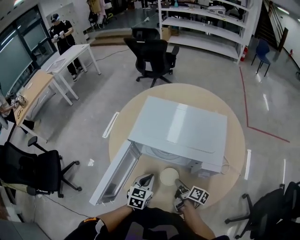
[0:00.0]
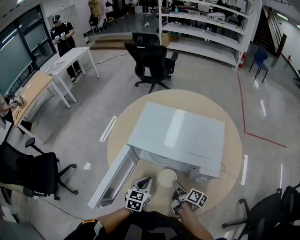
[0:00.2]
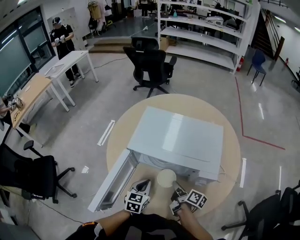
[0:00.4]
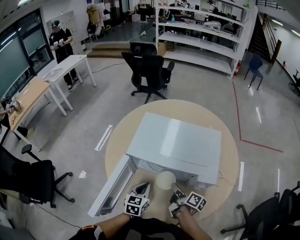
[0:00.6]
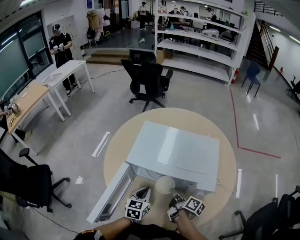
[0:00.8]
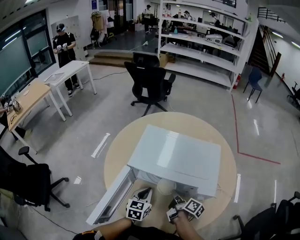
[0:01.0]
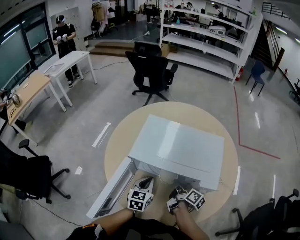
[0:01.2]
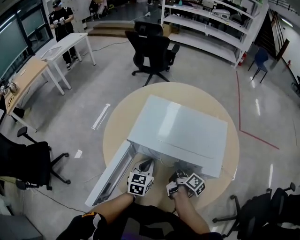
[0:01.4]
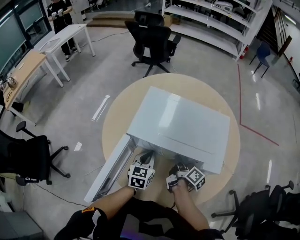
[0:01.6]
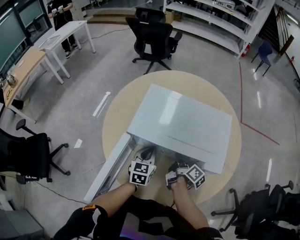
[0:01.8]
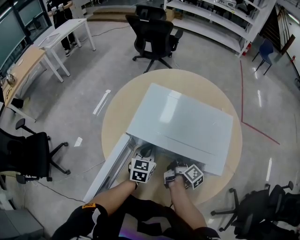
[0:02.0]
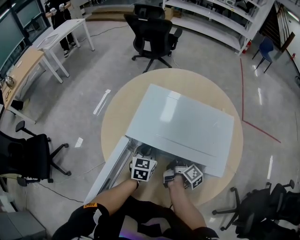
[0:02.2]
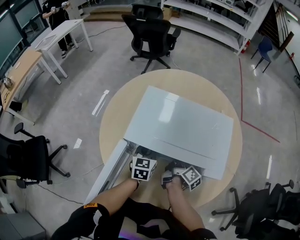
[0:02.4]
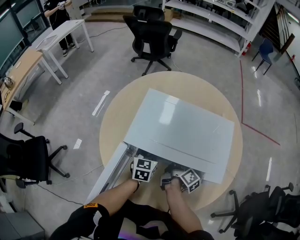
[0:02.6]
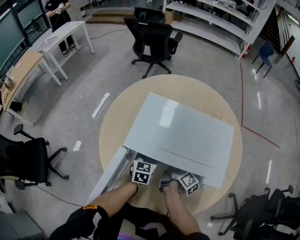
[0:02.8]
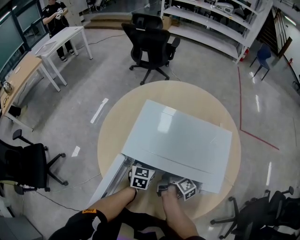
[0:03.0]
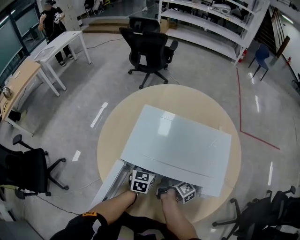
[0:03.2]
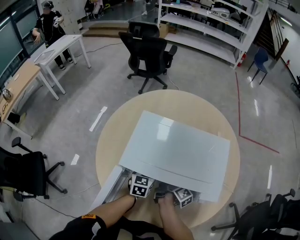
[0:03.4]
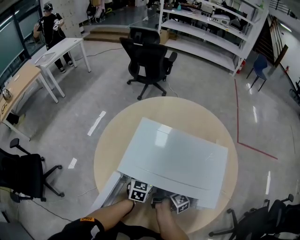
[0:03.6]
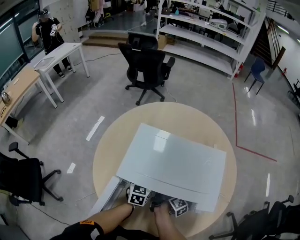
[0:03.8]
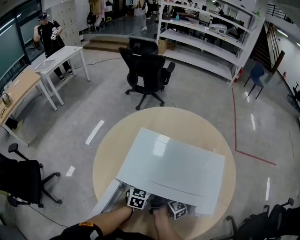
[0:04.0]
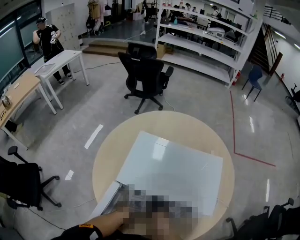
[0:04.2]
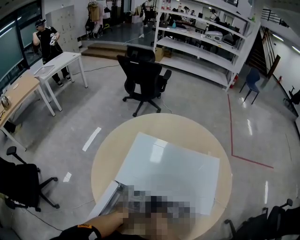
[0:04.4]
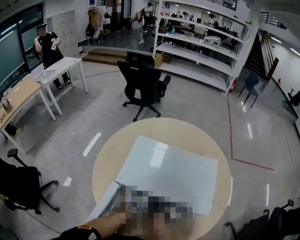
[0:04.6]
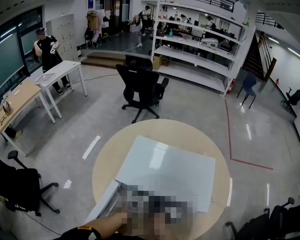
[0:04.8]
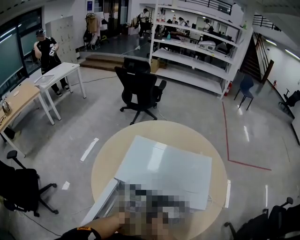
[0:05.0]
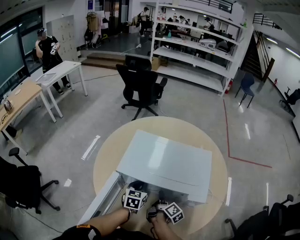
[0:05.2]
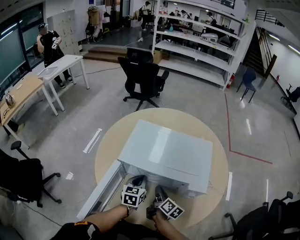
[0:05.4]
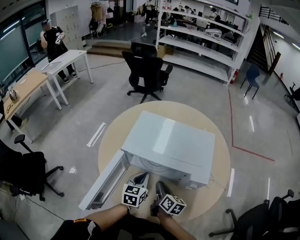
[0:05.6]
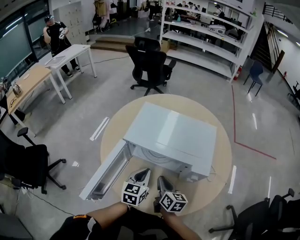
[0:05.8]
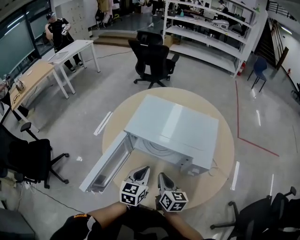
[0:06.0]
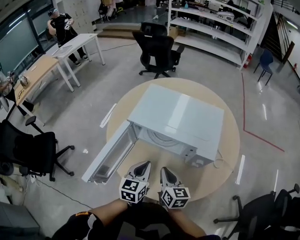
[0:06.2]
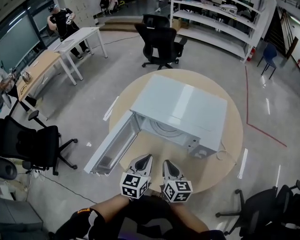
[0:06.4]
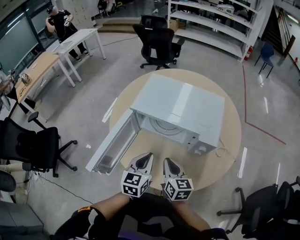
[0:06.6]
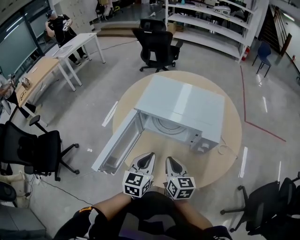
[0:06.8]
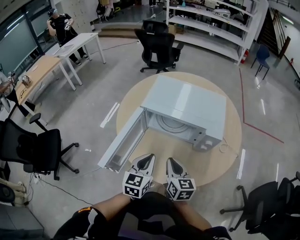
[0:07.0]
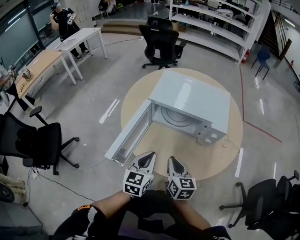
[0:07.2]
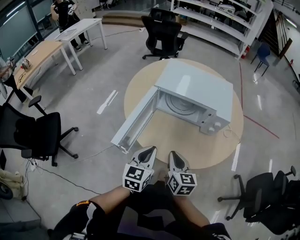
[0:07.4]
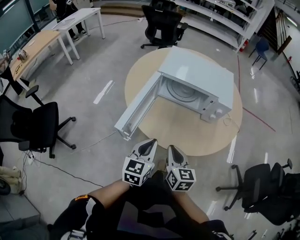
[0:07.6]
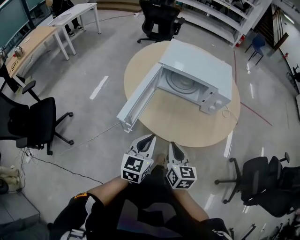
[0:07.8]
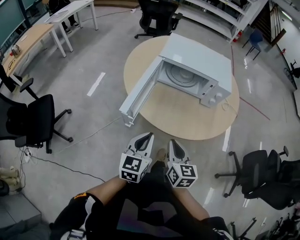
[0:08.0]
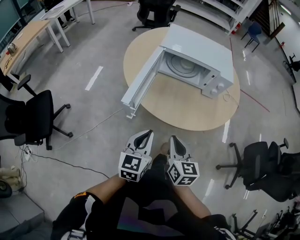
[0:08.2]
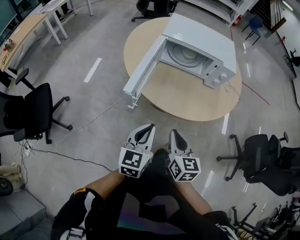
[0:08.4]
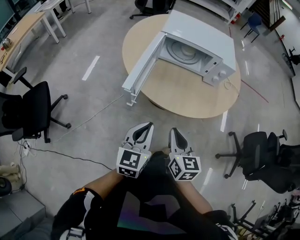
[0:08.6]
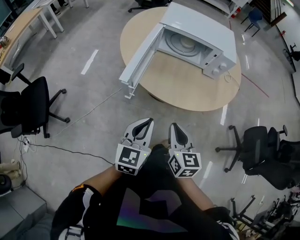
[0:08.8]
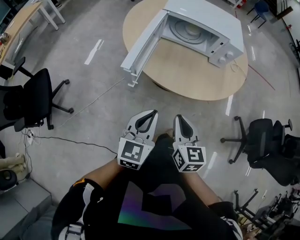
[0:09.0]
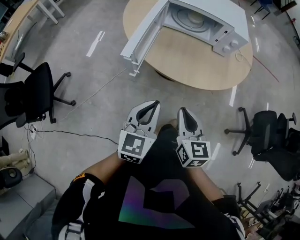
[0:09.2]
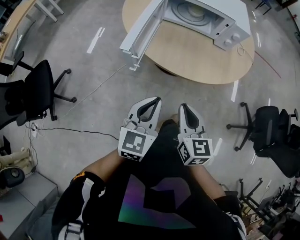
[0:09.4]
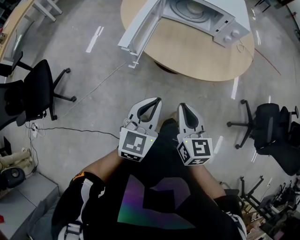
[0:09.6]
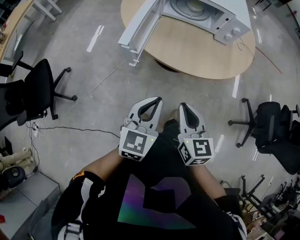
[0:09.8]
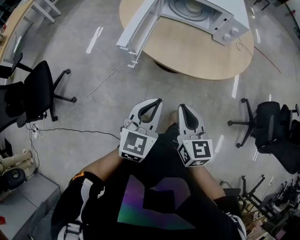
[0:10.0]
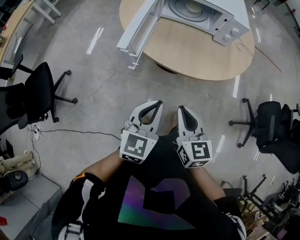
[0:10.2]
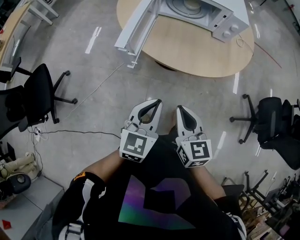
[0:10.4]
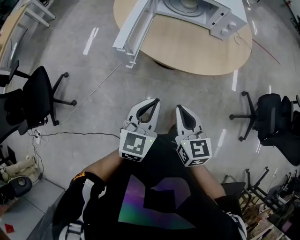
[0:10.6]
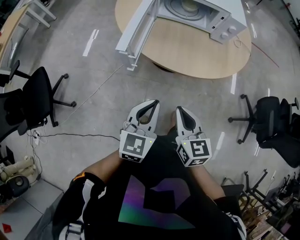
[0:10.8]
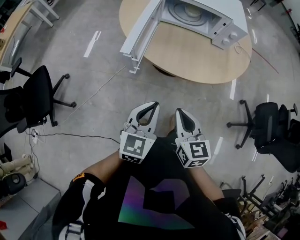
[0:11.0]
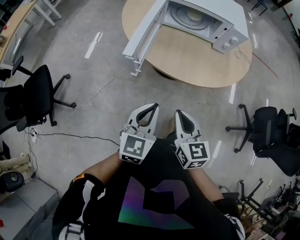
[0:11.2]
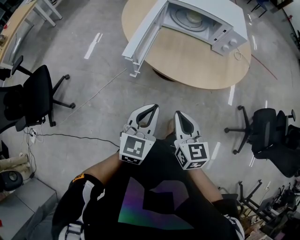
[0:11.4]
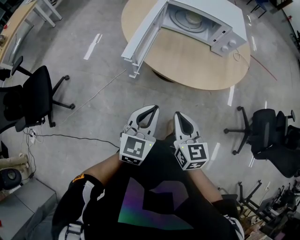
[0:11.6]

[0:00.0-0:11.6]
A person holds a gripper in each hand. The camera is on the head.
0:00.0 to 0:01.4: The right gripper shifts roughly 10 cm forward and upward, while the left gripper is displaced forward by roughly 10 cm.
0:01.4 to 0:02.8: Both grippers move forward, some 10 cm.
0:02.8 to 0:04.4: There are only small adjustments of the grippers.
0:04.4 to 0:05.8: The two grippers go approximately 20 cm backward and upward. The right gripper rolls counterclockwise, seen from behind, by about 50 degrees.
0:05.8 to 0:07.2: Both grippers travel together backward and to the left, roughly 20 cm.
0:07.2 to 0:08.8: The grippers both shift backward by some 20 cm.
0:08.8 to 0:10.2: The left gripper changes place by some 5 cm; the right gripper shifts by roughly 5 cm.
0:10.2 to 0:11.6: The grippers stay close to where they were, moving slightly.

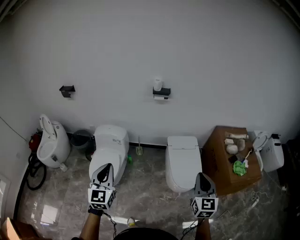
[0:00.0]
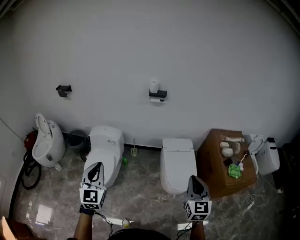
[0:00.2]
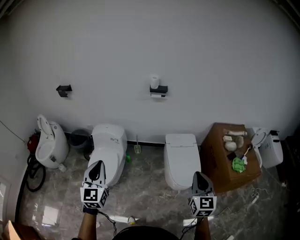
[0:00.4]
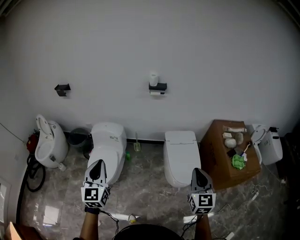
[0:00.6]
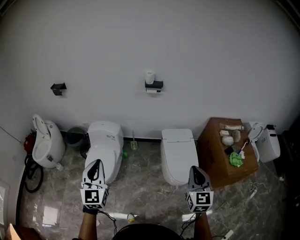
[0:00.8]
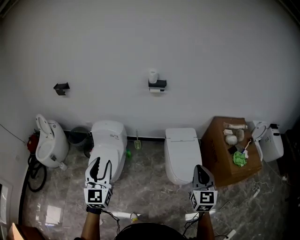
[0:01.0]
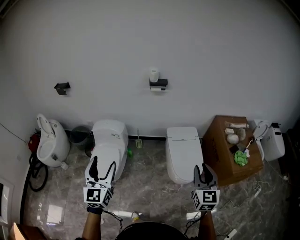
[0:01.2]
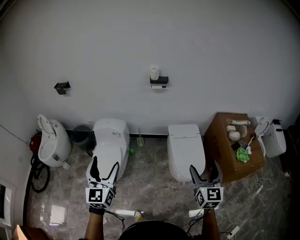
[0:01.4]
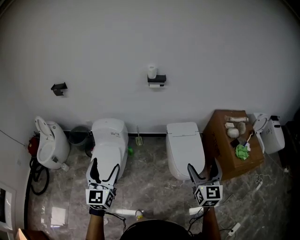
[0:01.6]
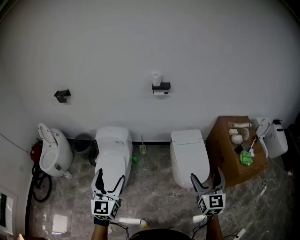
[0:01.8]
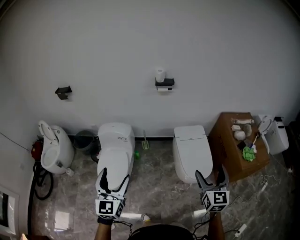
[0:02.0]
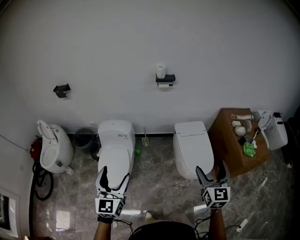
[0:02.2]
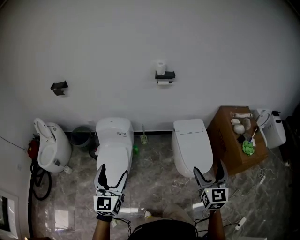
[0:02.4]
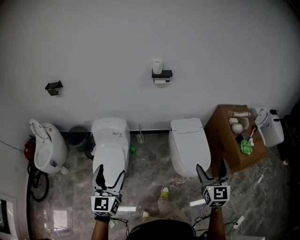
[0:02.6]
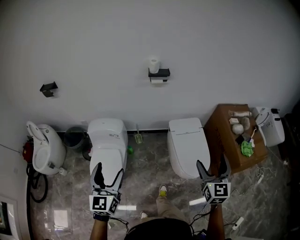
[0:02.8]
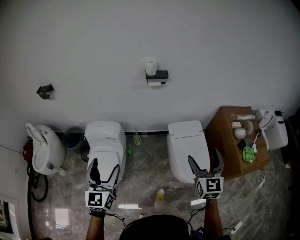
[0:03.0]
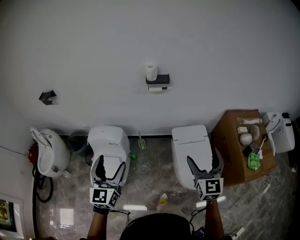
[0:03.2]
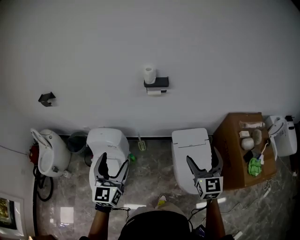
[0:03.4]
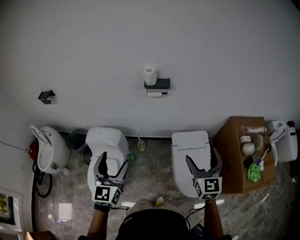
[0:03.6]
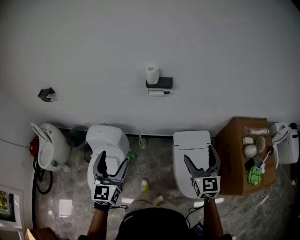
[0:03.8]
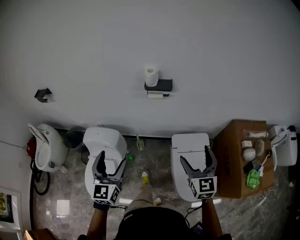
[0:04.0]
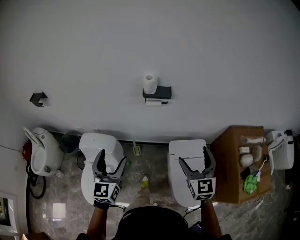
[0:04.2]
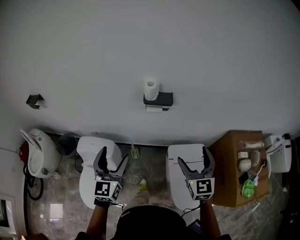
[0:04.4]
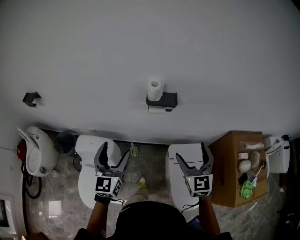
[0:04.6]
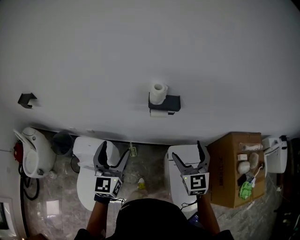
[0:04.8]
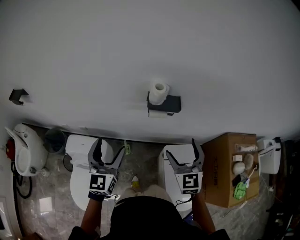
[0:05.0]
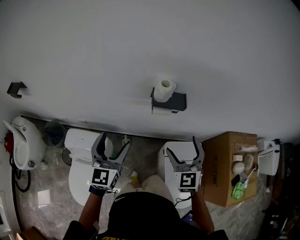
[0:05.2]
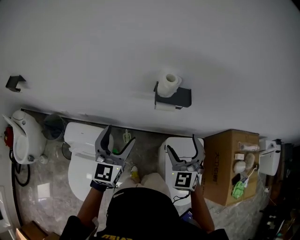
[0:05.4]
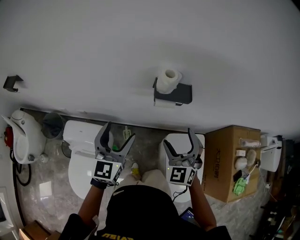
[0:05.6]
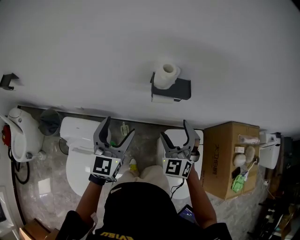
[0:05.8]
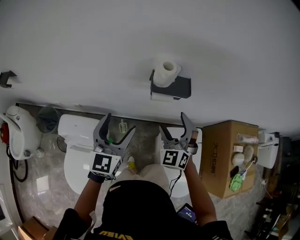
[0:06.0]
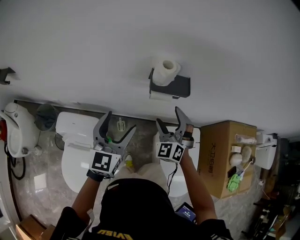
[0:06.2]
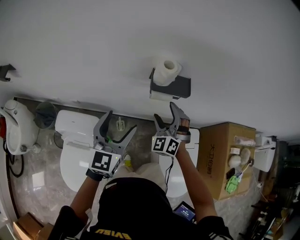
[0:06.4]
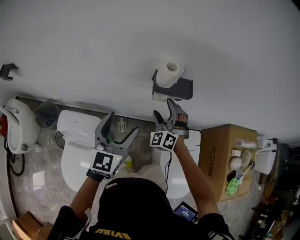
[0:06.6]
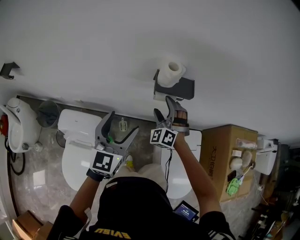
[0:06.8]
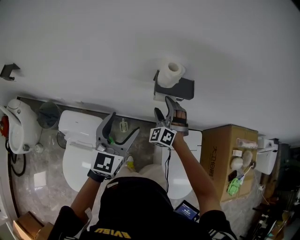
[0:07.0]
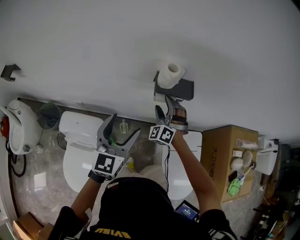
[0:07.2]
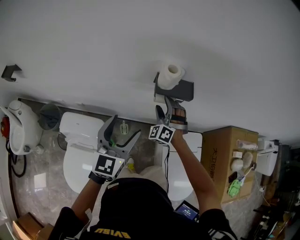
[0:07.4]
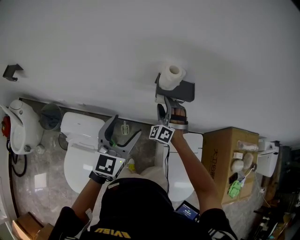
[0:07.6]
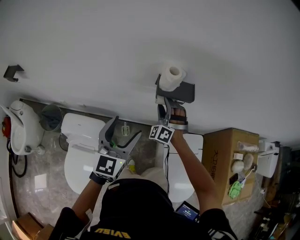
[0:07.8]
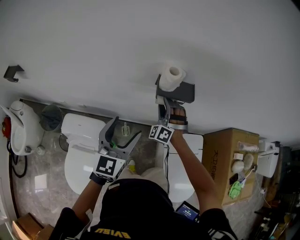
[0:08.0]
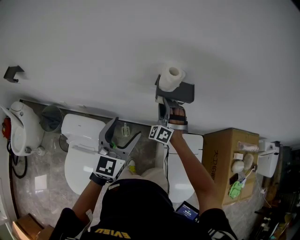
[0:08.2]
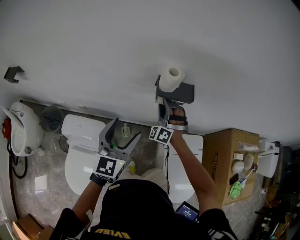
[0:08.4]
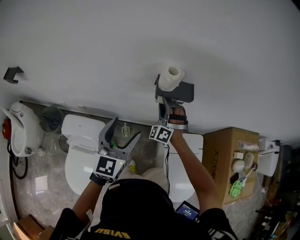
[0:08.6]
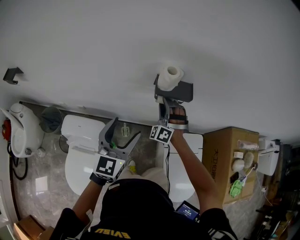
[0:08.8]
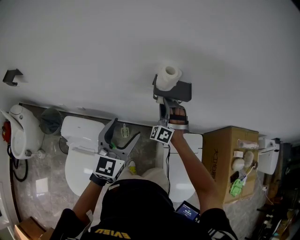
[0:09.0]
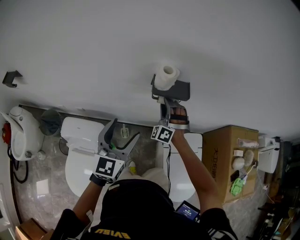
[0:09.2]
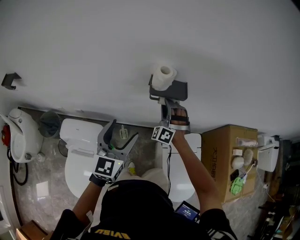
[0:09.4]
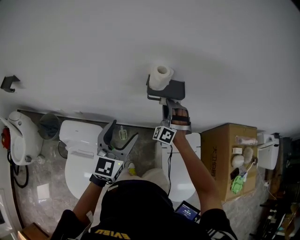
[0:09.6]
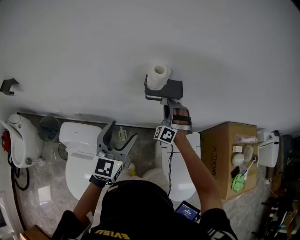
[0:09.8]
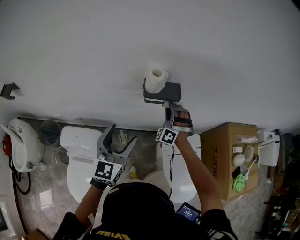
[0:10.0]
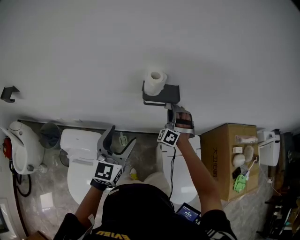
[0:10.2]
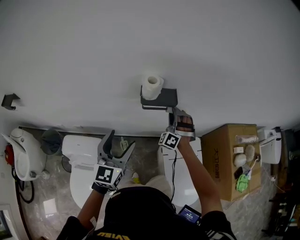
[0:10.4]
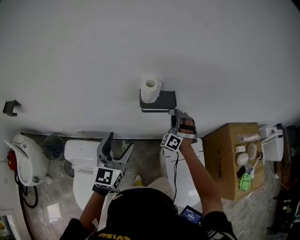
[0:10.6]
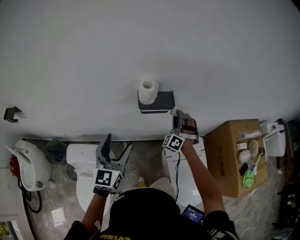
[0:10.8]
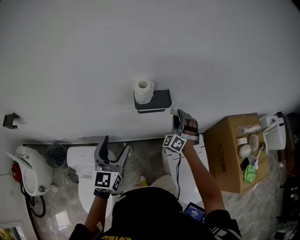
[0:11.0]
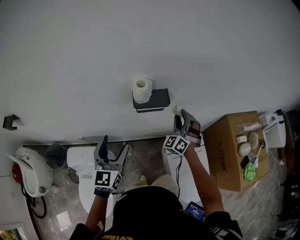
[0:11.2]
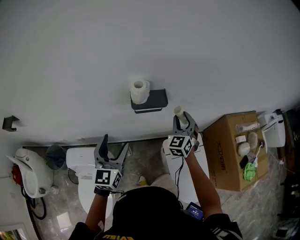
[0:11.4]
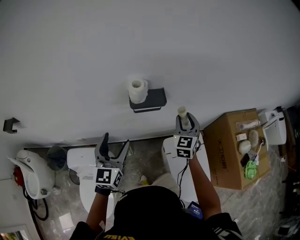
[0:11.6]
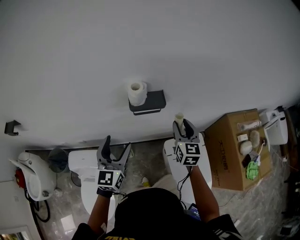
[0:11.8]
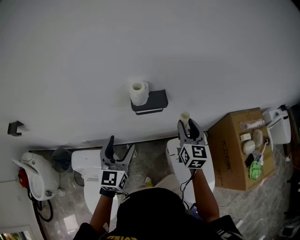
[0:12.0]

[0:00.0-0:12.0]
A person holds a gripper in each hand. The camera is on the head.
0:00.0 to 0:01.6: The right gripper opens. Meanwhile the left gripper opens up.
0:01.6 to 0:03.0: Both grippers travel together forward, about 15 cm.
0:03.0 to 0:04.4: The grippers both shift forward by some 30 cm.
0:04.4 to 0:06.0: The left gripper moves forward and downward, roughly 20 cm. Meanwhile the right gripper moves forward, to the left and downward, some 25 cm, and changes its angle by about 40 degrees.
0:06.0 to 0:07.6: The right gripper shifts roughly 15 cm forward, downward and to the left, and changes its angle by roughly 30 degrees.
0:07.6 to 0:09.0: There are only small adjustments of the grippers.
0:09.0 to 0:10.4: The right gripper heads to the right, covering some 10 cm.
0:10.4 to 0:12.0: The right gripper travels upward, to the right and backward by roughly 15 cm, and rolls clockwise, seen from behind, by roughly 90 degrees.
